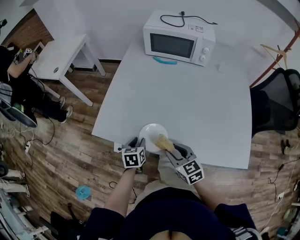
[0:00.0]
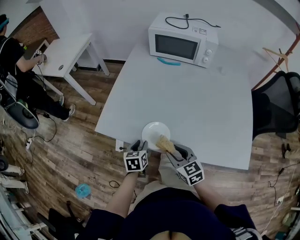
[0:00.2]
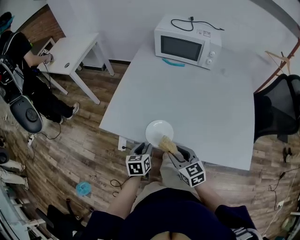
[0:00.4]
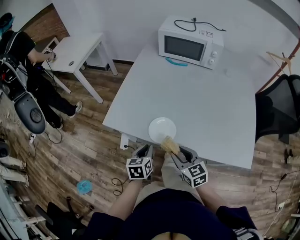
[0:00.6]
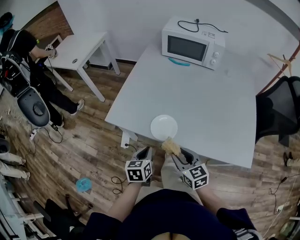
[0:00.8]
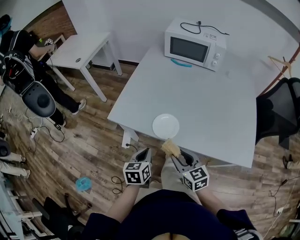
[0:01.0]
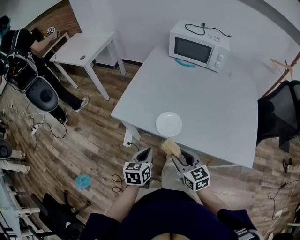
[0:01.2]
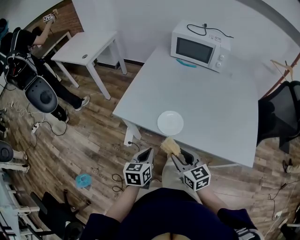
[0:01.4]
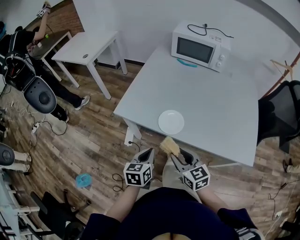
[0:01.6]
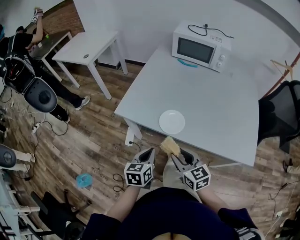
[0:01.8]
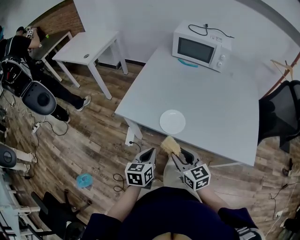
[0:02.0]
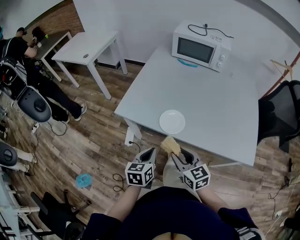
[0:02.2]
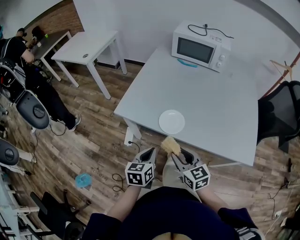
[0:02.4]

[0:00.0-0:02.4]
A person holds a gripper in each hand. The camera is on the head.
0:00.0 to 0:01.2: The left gripper is displaced backward and upward by about 20 cm, and closes its fingers. The right gripper shifts approximately 10 cm backward.
0:01.2 to 0:02.4: The grippers stay close to where they were, moving slightly.

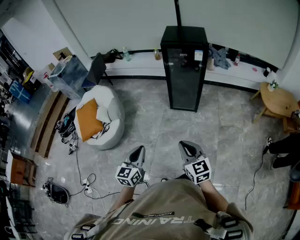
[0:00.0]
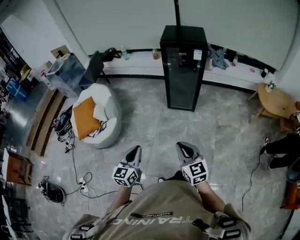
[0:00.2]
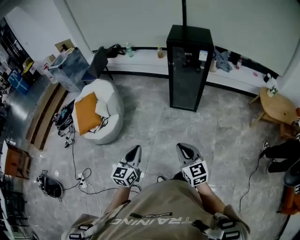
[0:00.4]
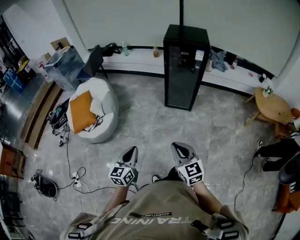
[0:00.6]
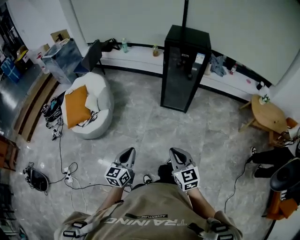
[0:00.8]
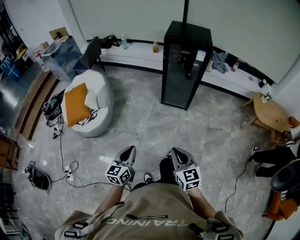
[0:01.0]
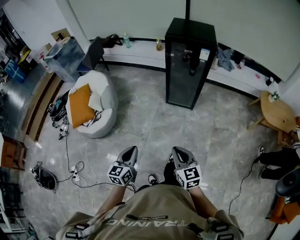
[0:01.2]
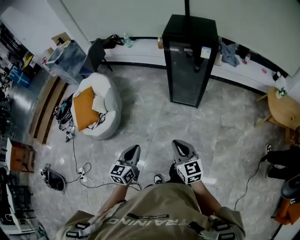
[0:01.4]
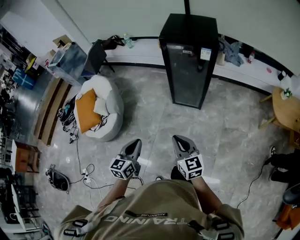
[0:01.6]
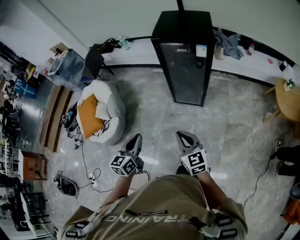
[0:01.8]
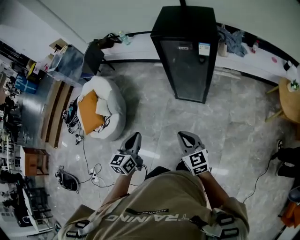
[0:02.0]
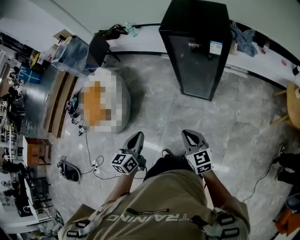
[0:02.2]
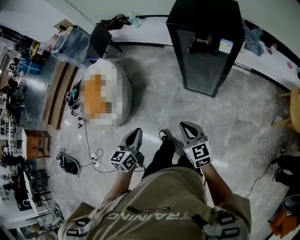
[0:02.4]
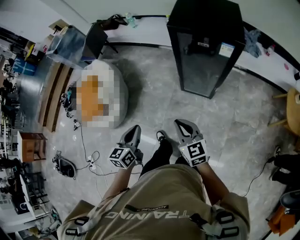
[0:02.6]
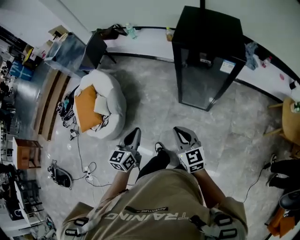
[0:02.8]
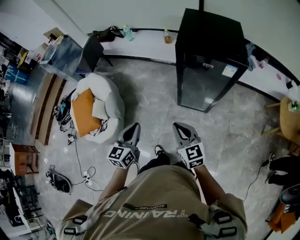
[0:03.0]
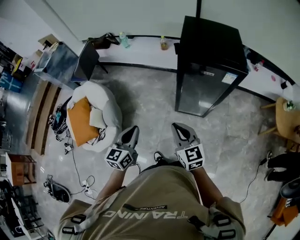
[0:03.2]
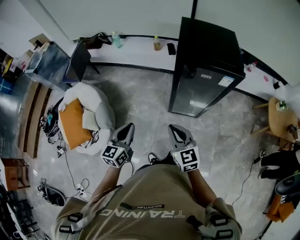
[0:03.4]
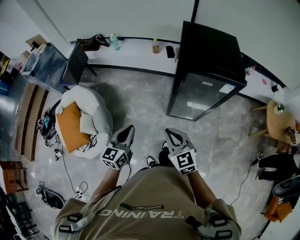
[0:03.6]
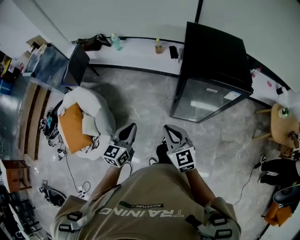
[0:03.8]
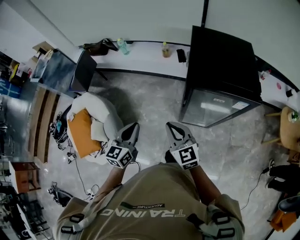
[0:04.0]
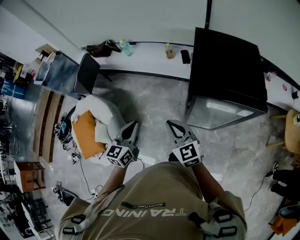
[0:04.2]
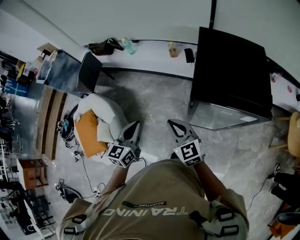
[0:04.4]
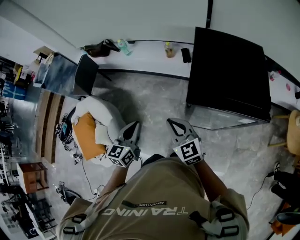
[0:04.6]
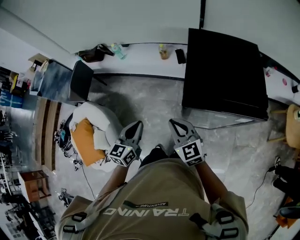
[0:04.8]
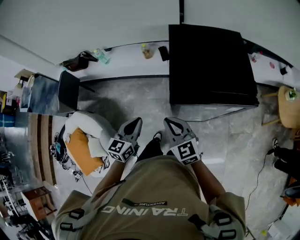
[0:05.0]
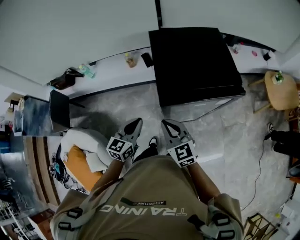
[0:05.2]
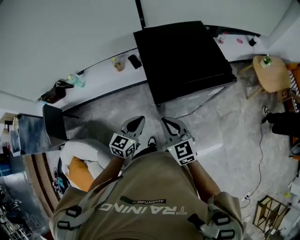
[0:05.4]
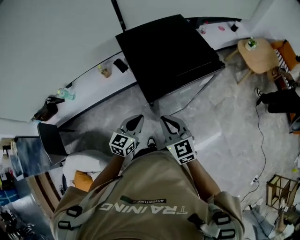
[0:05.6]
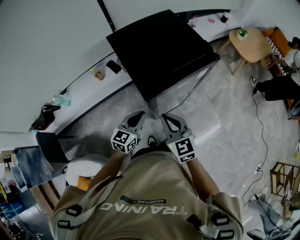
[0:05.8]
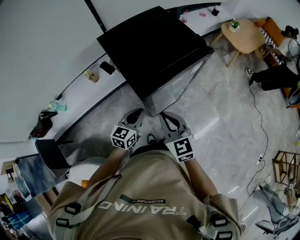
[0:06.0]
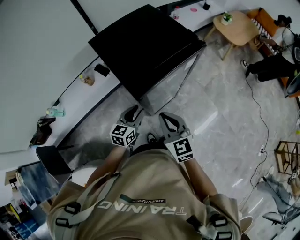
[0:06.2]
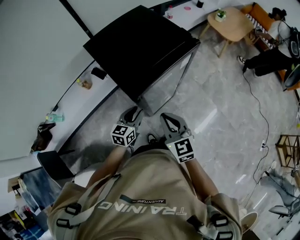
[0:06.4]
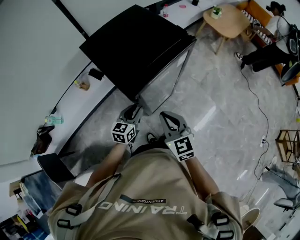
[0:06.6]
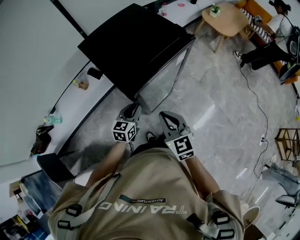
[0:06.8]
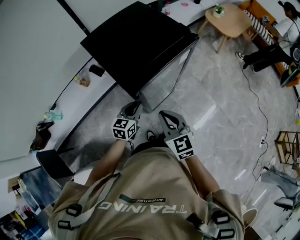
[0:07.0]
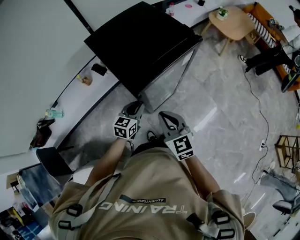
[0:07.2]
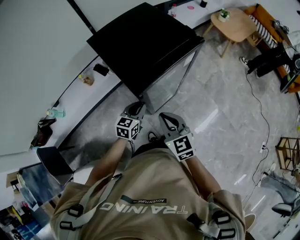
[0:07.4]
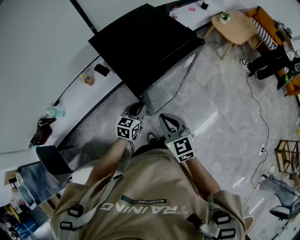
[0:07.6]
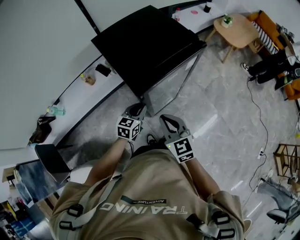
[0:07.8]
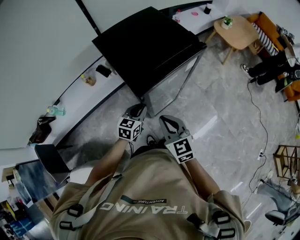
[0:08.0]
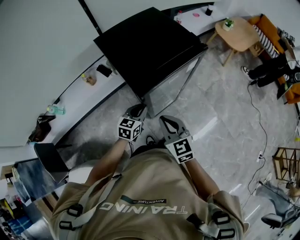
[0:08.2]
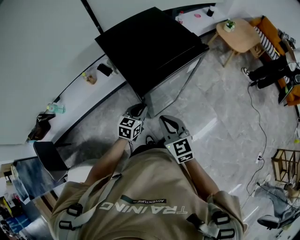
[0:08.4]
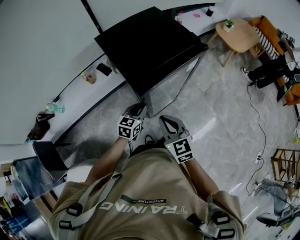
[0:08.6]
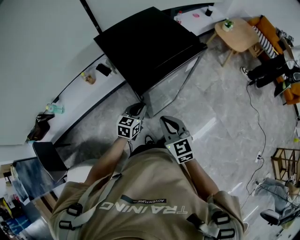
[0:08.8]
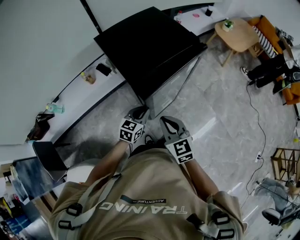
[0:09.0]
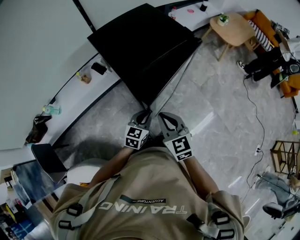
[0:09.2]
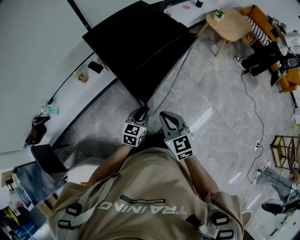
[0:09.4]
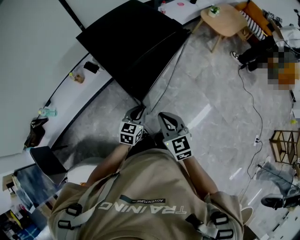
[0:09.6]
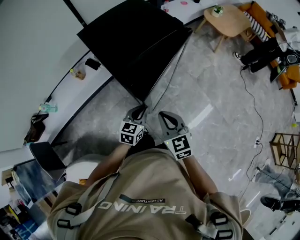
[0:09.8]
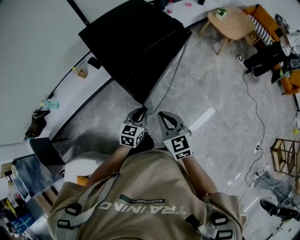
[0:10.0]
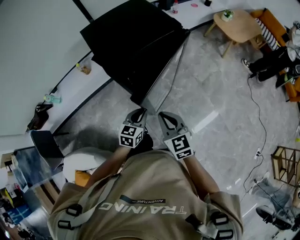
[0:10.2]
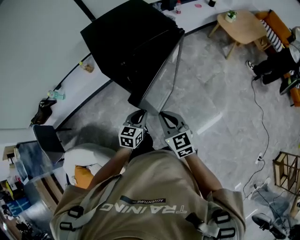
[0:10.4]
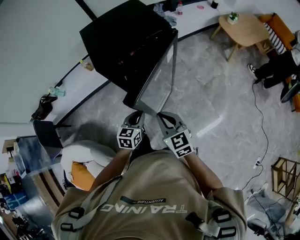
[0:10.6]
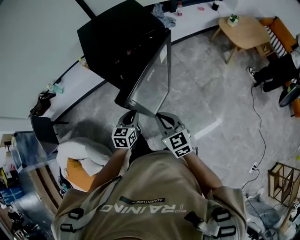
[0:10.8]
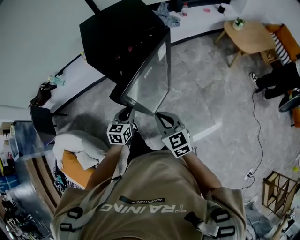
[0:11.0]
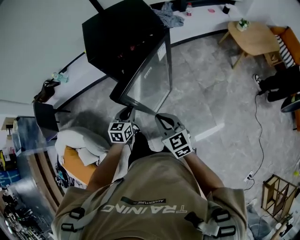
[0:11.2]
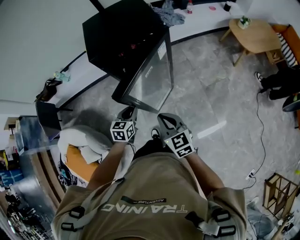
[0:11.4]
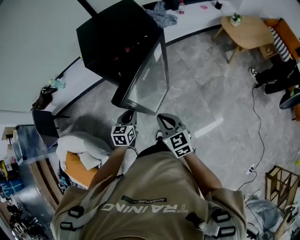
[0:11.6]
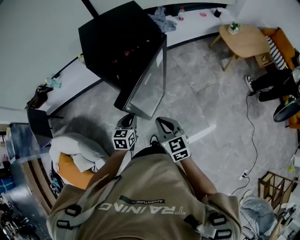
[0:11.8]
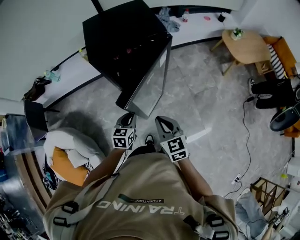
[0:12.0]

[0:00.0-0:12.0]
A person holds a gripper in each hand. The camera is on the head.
0:00.0 to 0:01.6: The two grippers go about 15 cm forward.
0:01.6 to 0:03.0: Both grippers travel together forward, approximately 25 cm.
0:03.0 to 0:04.4: The two grippers go about 25 cm forward.
0:04.4 to 0:06.0: The right gripper moves roughly 10 cm, and rotates some 50 degrees. Meanwhile the left gripper shifts by about 25 cm, and changes its angle by some 60 degrees.
0:06.0 to 0:07.6: The left gripper ends up roughly 5 cm from where it was.
0:07.6 to 0:09.0: The grippers stay close to where they were, moving slightly.
0:09.0 to 0:10.4: The right gripper shifts roughly 10 cm to the right, while the left gripper goes some 15 cm to the right and backward.
0:10.4 to 0:12.0: The left gripper changes place by some 5 cm; the right gripper moves to the right, roughly 10 cm.

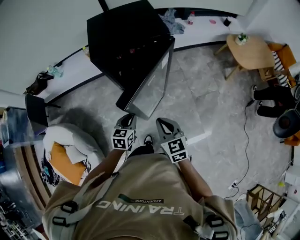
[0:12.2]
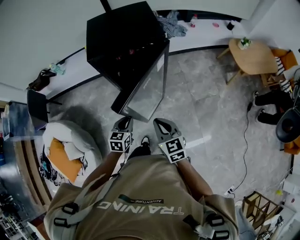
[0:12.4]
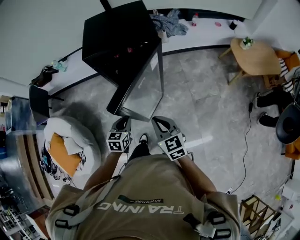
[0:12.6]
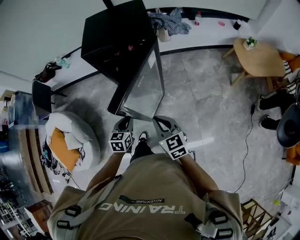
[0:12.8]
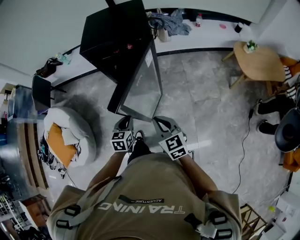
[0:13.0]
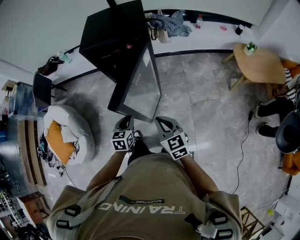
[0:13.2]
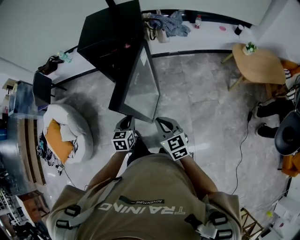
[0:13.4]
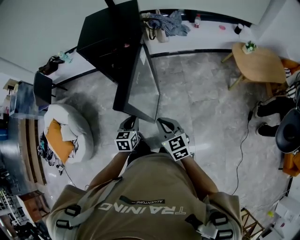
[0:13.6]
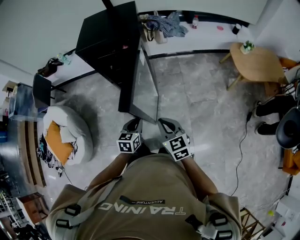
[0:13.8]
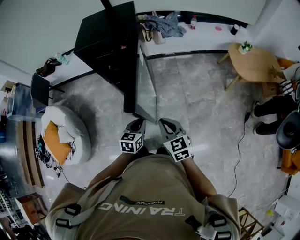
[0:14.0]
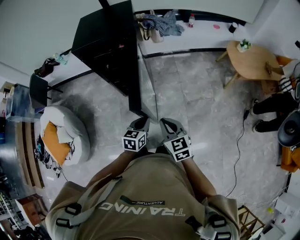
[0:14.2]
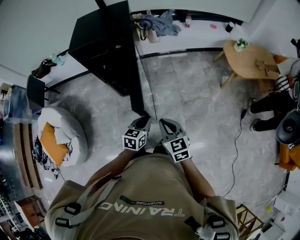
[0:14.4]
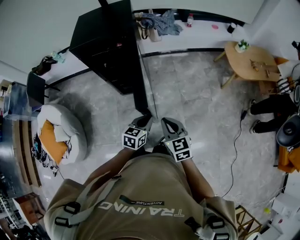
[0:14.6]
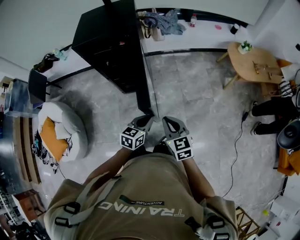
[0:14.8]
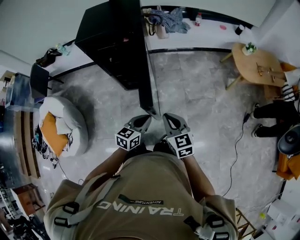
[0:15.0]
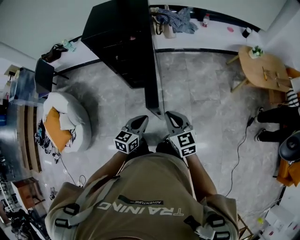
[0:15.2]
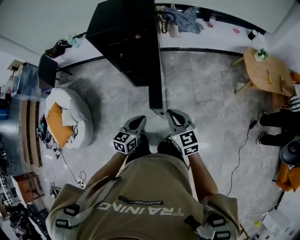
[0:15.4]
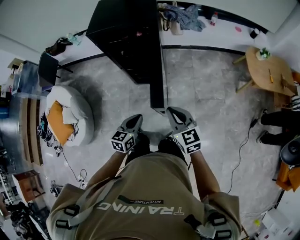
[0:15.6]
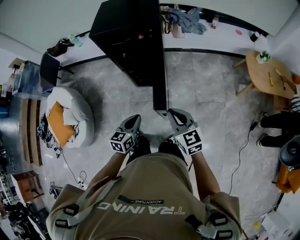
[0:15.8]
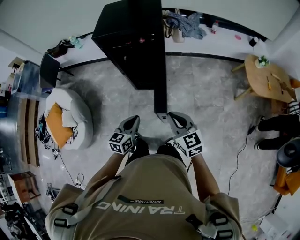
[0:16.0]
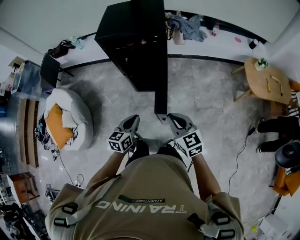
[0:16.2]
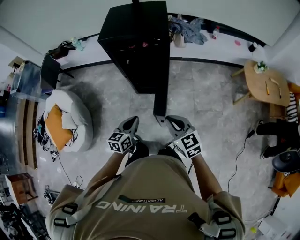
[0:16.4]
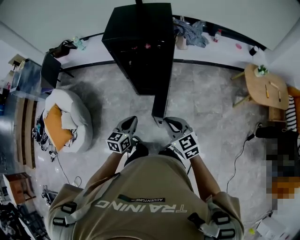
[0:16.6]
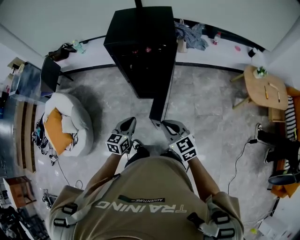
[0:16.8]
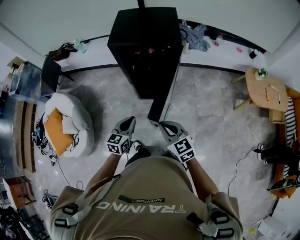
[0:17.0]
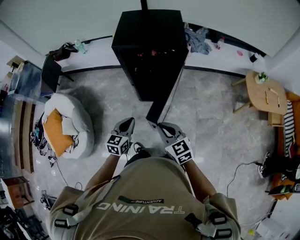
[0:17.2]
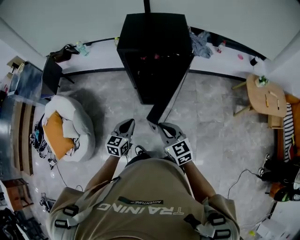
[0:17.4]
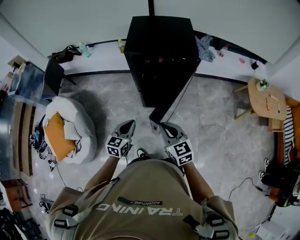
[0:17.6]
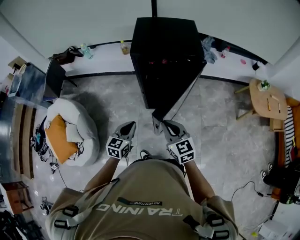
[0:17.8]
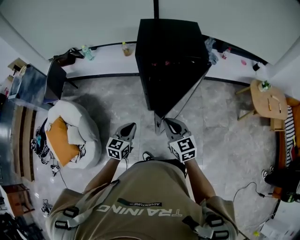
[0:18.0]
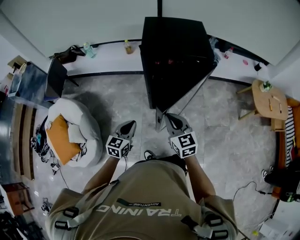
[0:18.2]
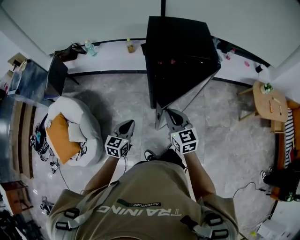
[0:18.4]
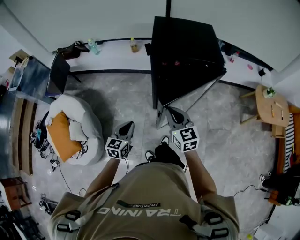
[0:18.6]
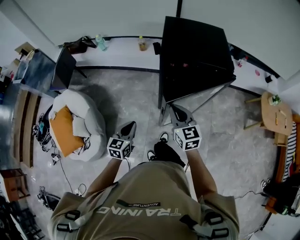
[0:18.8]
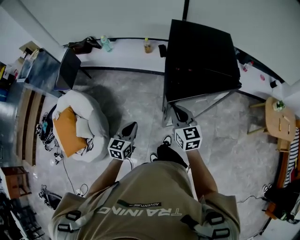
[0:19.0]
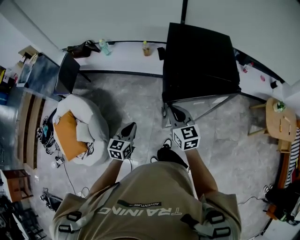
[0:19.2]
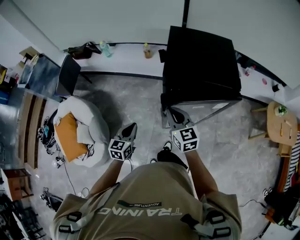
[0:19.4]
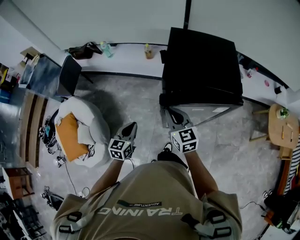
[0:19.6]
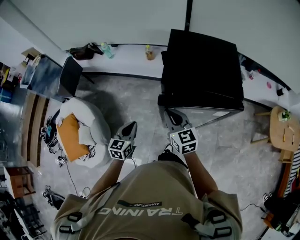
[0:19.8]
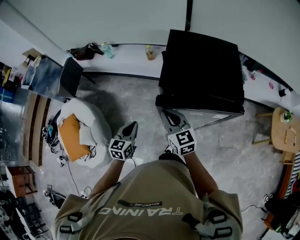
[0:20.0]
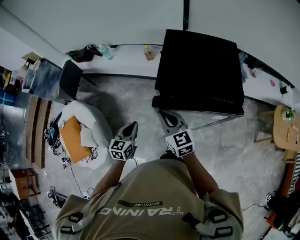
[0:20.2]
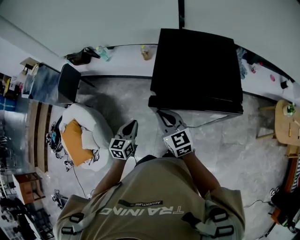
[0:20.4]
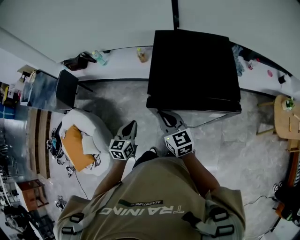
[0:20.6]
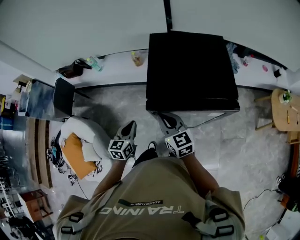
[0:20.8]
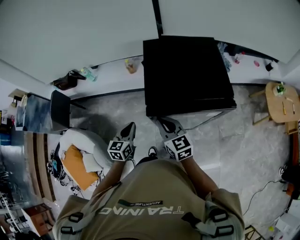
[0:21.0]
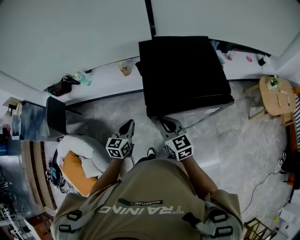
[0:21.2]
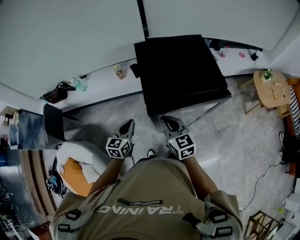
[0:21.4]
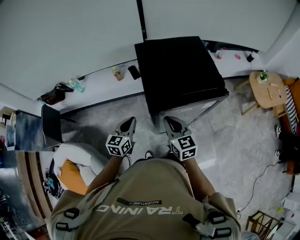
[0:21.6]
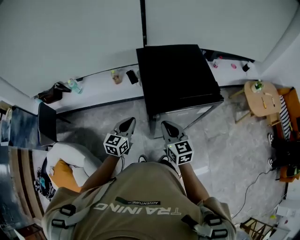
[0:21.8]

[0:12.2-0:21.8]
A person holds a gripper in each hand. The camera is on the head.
0:12.2 to 0:13.8: The two grippers go about 20 cm to the right and backward.
0:13.8 to 0:15.4: The left gripper moves some 10 cm to the right and comes back.
0:15.4 to 0:17.0: The left gripper travels to the left and forward by roughly 15 cm. Meanwhile the right gripper shifts some 15 cm to the left.
0:17.0 to 0:18.6: The right gripper travels forward and to the left by some 20 cm; the left gripper goes roughly 20 cm to the left.
0:18.6 to 0:20.2: Both grippers travel together forward, some 15 cm.
0:20.2 to 0:21.8: The left gripper changes place by roughly 15 cm, and swivels roughly 30 degrees, while the right gripper rotates roughly 30 degrees.
